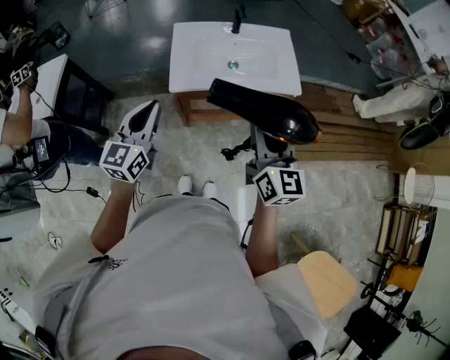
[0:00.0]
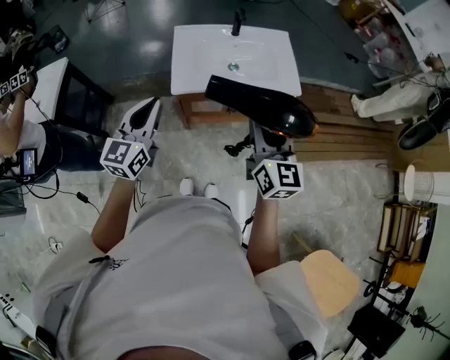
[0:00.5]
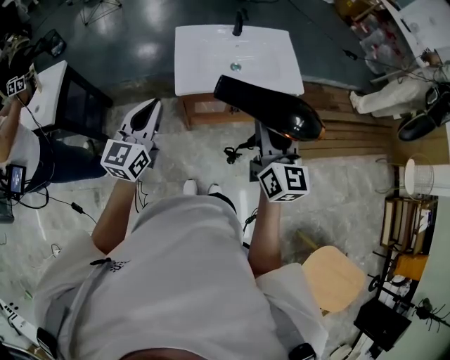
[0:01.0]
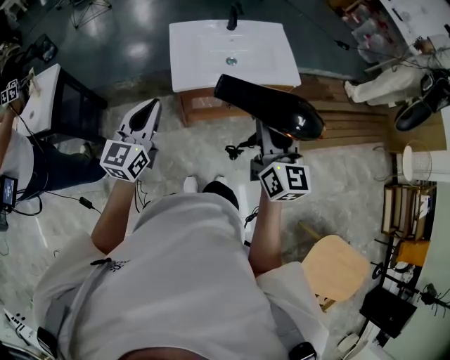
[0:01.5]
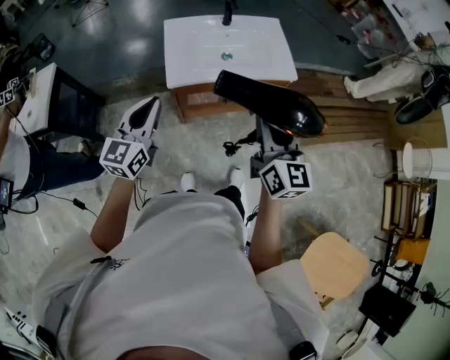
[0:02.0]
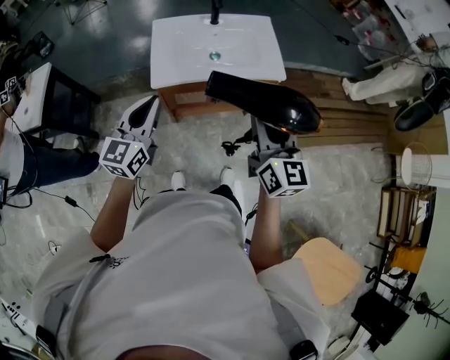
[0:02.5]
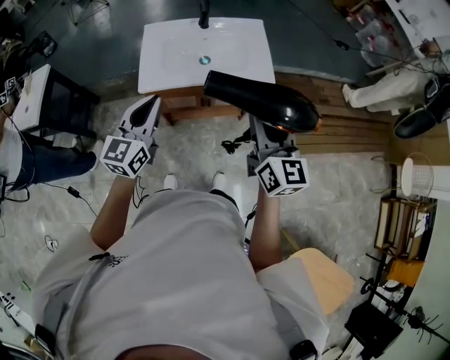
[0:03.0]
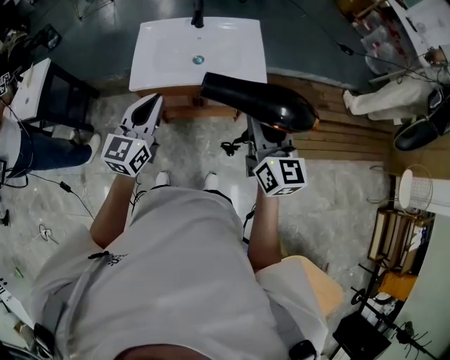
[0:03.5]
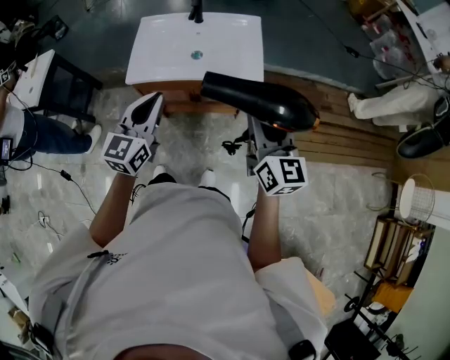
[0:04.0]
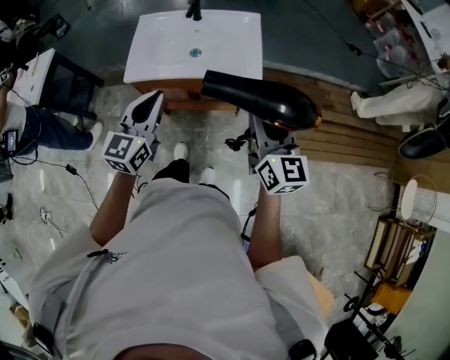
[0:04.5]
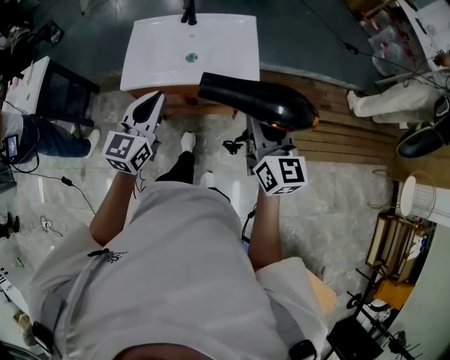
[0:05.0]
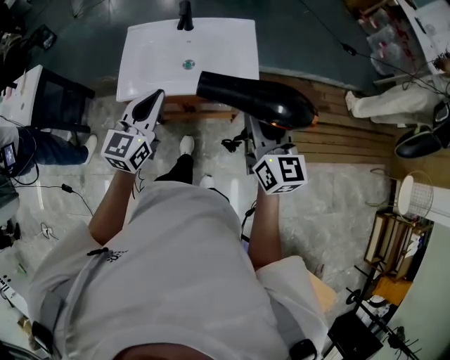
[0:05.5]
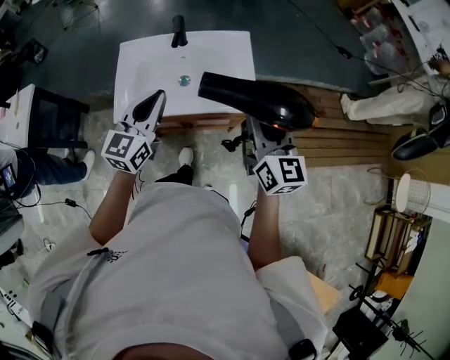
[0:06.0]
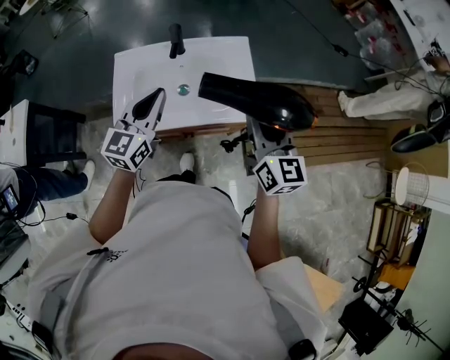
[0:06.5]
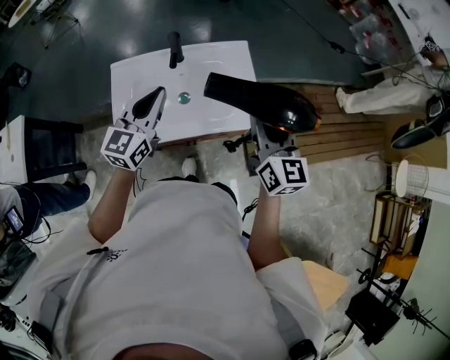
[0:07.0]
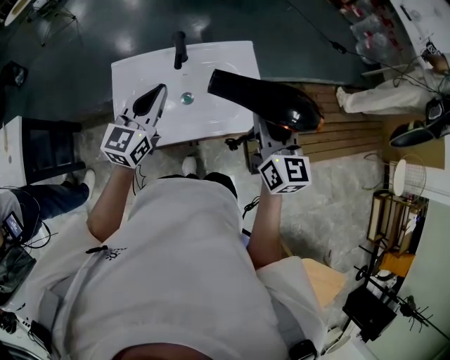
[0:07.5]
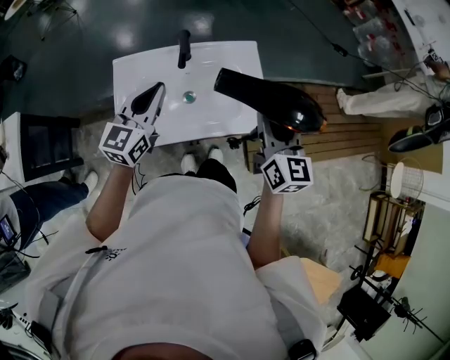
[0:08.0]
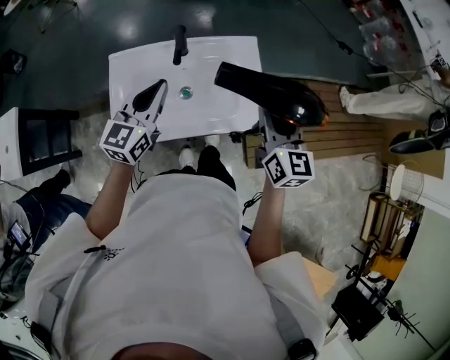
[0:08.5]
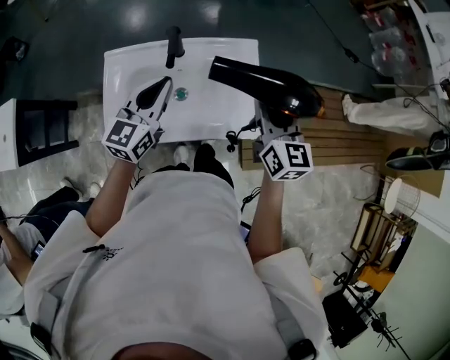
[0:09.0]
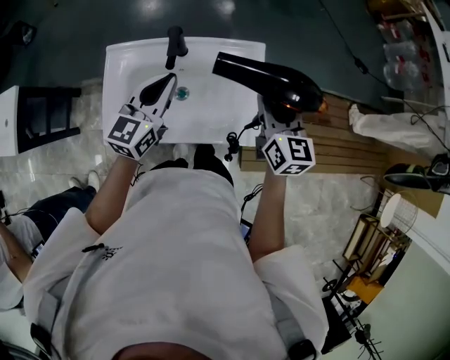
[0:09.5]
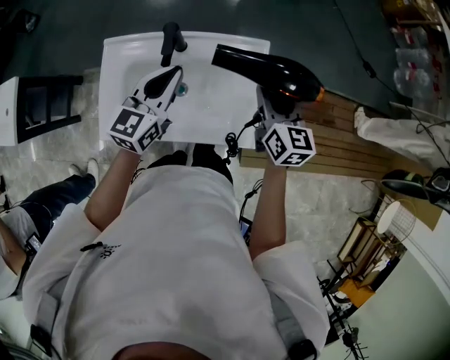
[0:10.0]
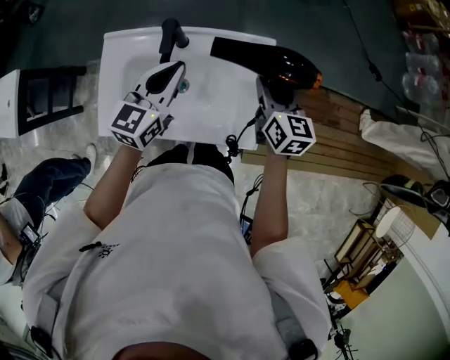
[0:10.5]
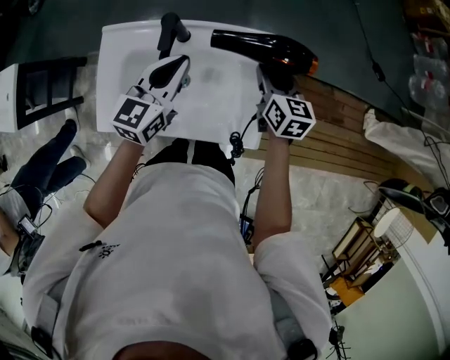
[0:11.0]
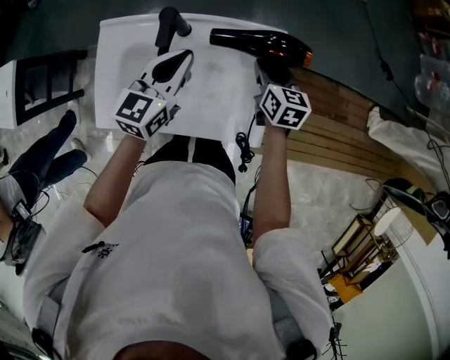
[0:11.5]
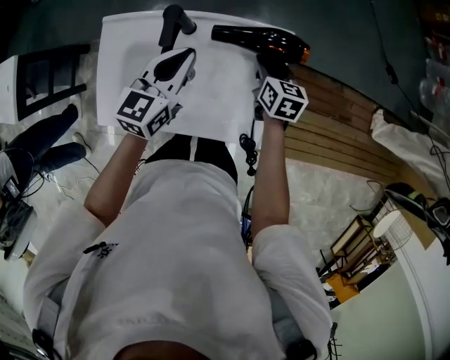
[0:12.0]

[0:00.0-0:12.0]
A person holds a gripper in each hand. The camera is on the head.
0:00.0 to 0:02.0: The grippers make only small movements.
0:02.0 to 0:04.0: The grippers both shift to the right by some 25 cm.
0:04.0 to 0:06.0: Both grippers move forward, some 15 cm.
0:06.0 to 0:08.0: The grippers both shift forward and to the left by some 15 cm.
0:08.0 to 0:10.0: The left gripper heads to the right and forward, covering some 15 cm. The right gripper shifts approximately 20 cm forward and downward.
0:10.0 to 0:12.0: The right gripper travels downward by roughly 20 cm, and rotates about 20 degrees; the left gripper moves downward, roughly 5 cm.

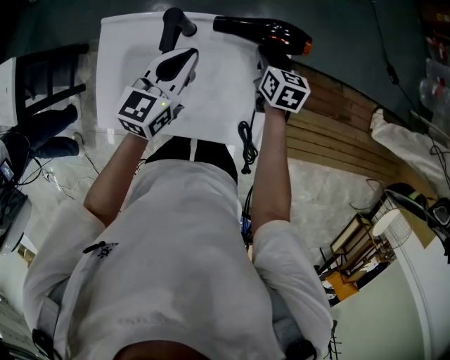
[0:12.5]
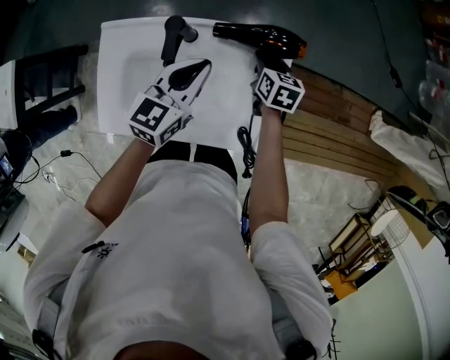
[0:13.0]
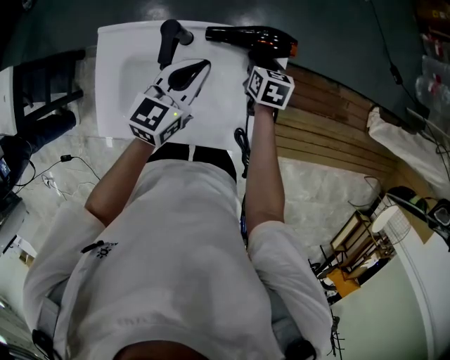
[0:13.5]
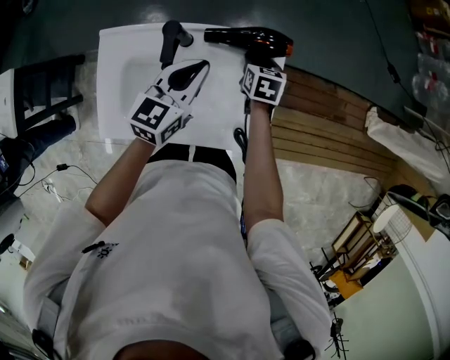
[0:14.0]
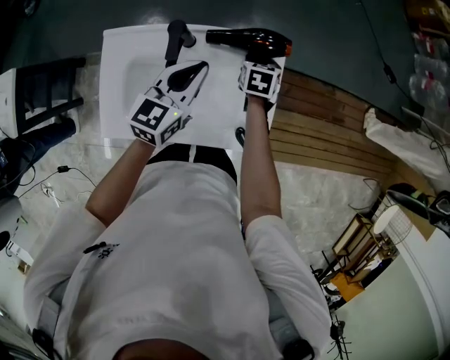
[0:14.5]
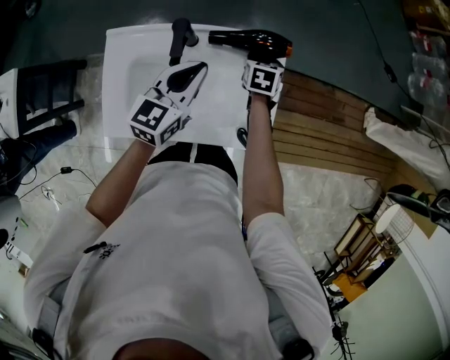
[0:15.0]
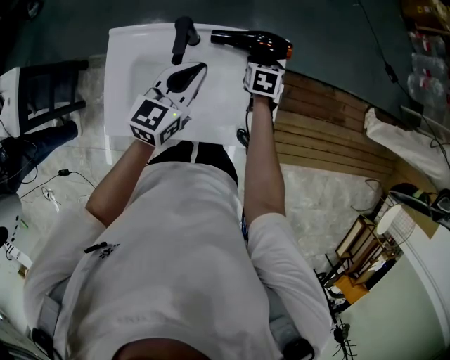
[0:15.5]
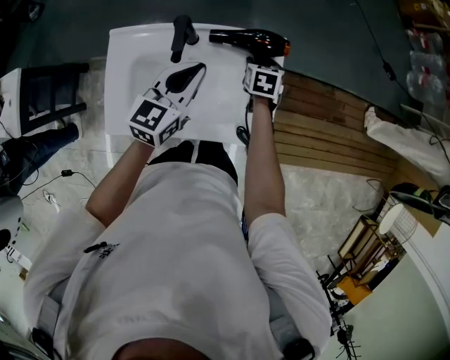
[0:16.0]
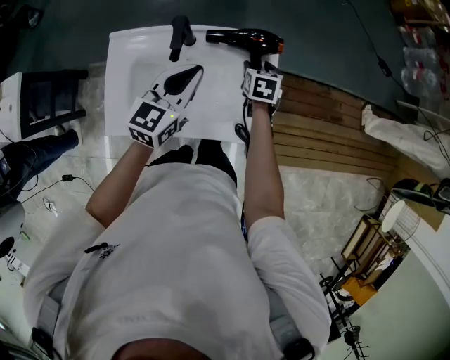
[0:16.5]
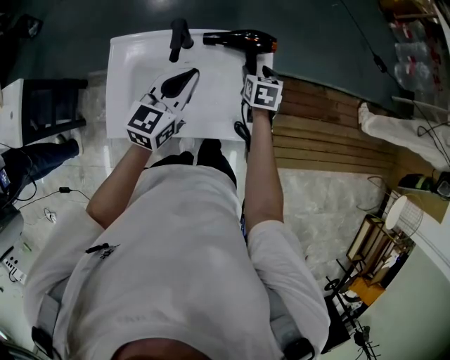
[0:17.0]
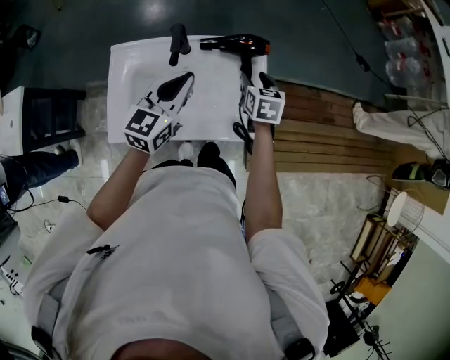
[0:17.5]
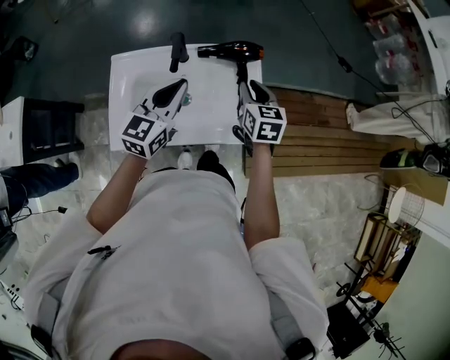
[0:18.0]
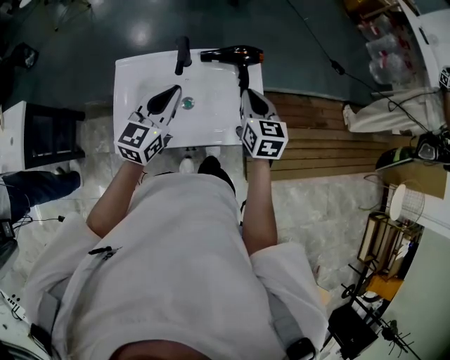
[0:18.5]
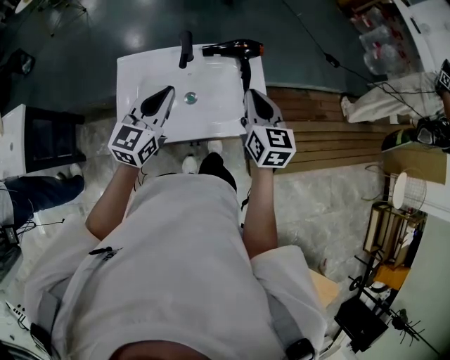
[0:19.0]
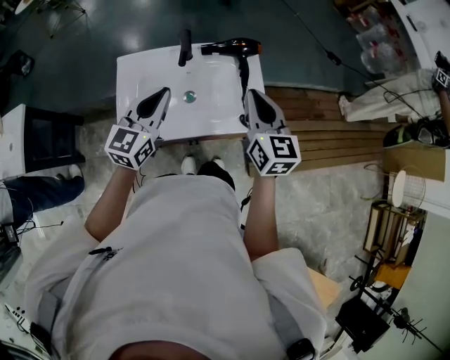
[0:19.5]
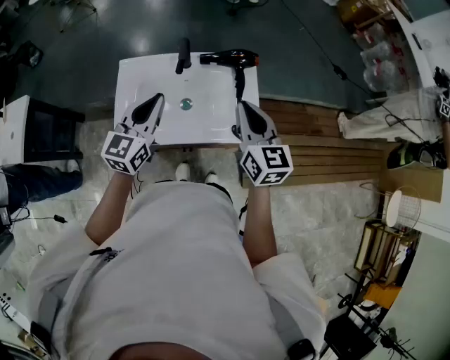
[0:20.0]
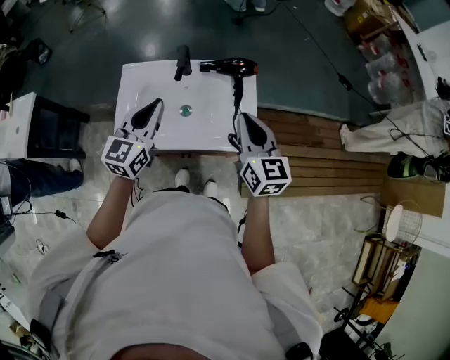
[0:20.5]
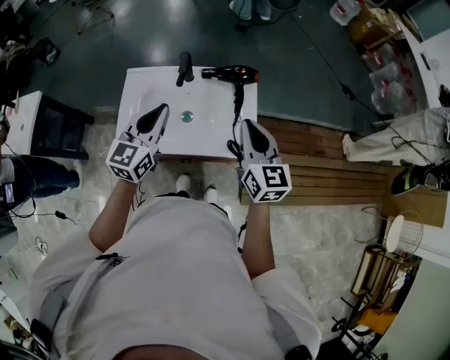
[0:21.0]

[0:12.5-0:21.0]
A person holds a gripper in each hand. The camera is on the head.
0:12.5 to 0:14.5: There are only small adjustments of the grippers.
0:14.5 to 0:16.5: The right gripper shifts by some 5 cm.
0:16.5 to 0:19.0: The right gripper shifts roughly 30 cm upward and backward, points its fingers approximately 30 degrees further upward, and closes up. The left gripper travels backward and upward by roughly 10 cm.
0:19.0 to 0:21.0: The right gripper is displaced upward by roughly 5 cm. The left gripper ends up roughly 5 cm from where it was.

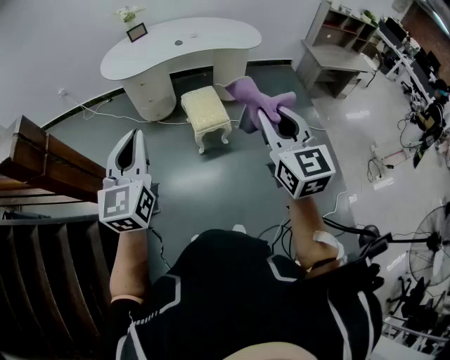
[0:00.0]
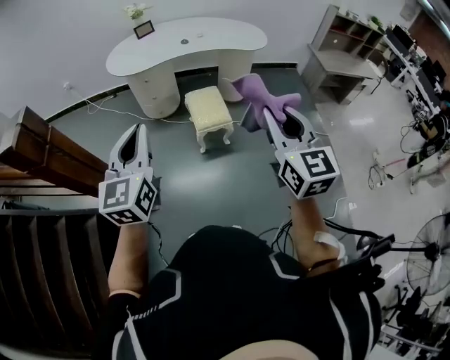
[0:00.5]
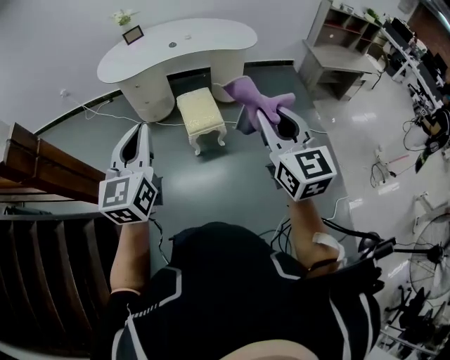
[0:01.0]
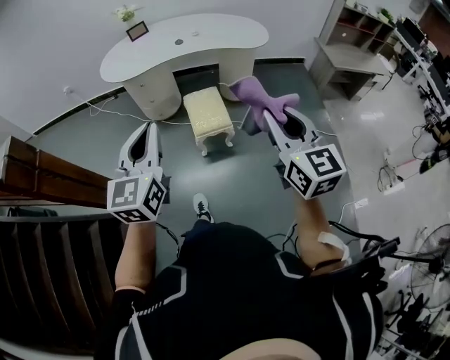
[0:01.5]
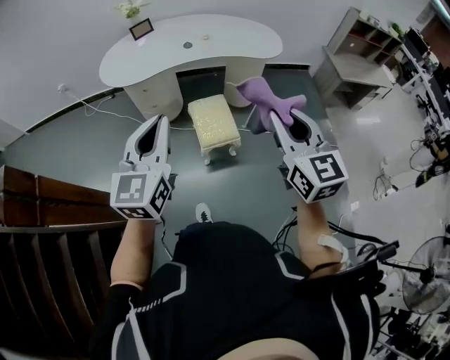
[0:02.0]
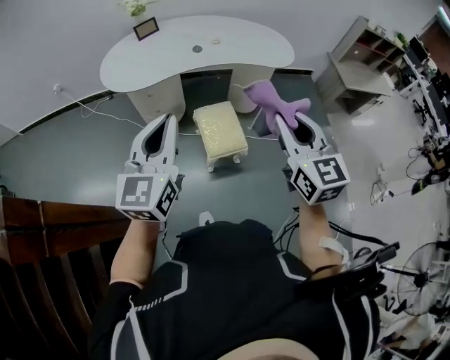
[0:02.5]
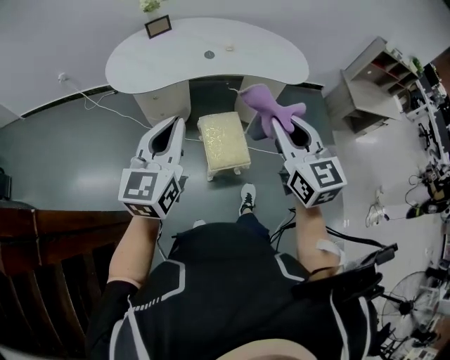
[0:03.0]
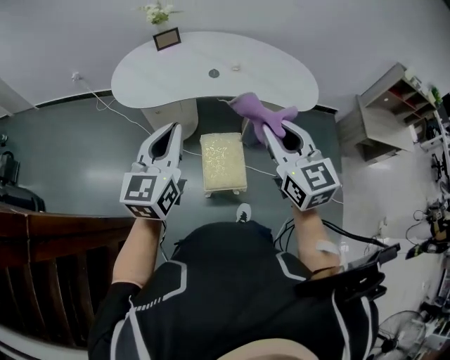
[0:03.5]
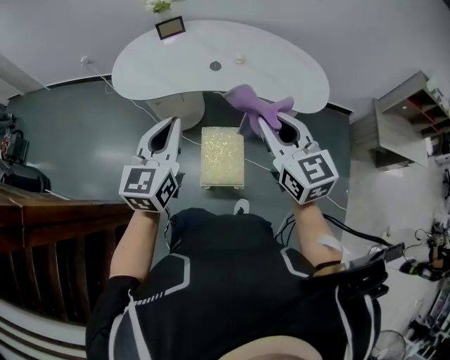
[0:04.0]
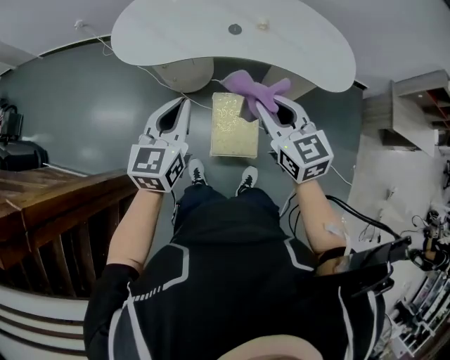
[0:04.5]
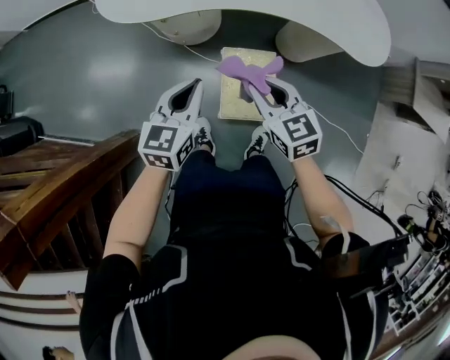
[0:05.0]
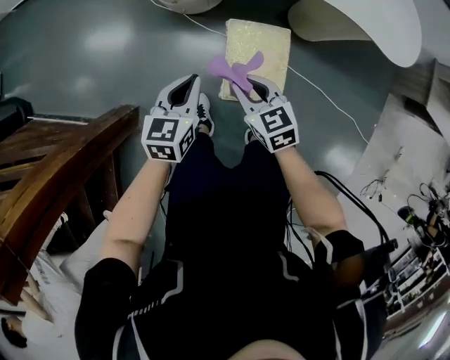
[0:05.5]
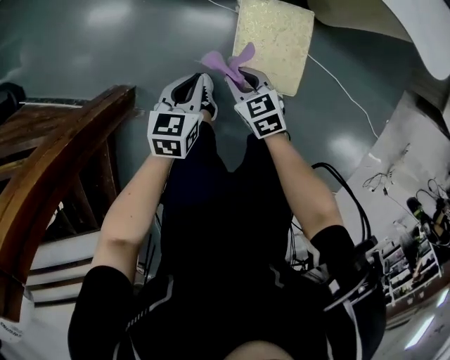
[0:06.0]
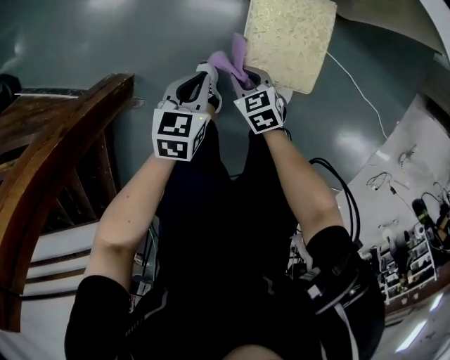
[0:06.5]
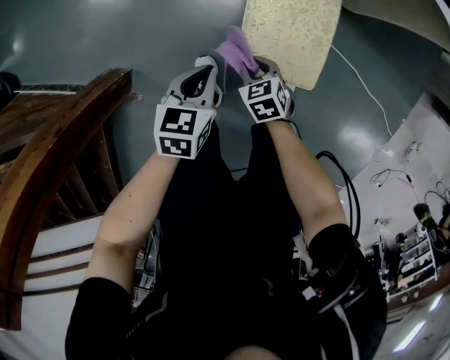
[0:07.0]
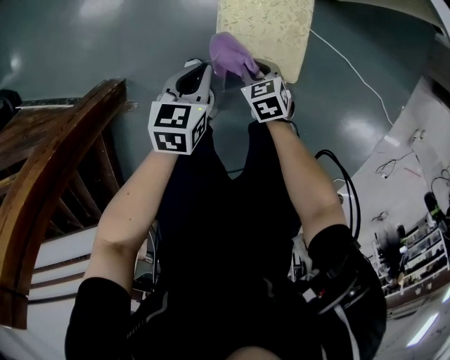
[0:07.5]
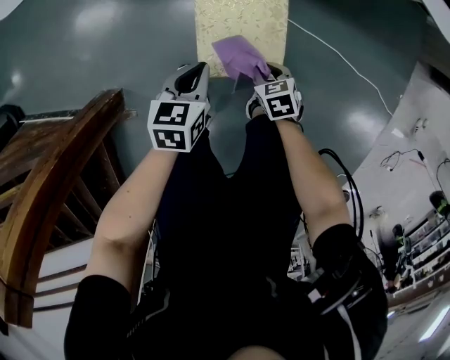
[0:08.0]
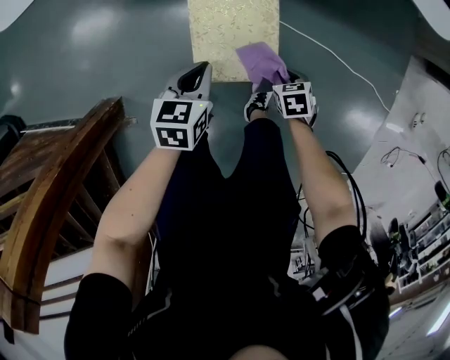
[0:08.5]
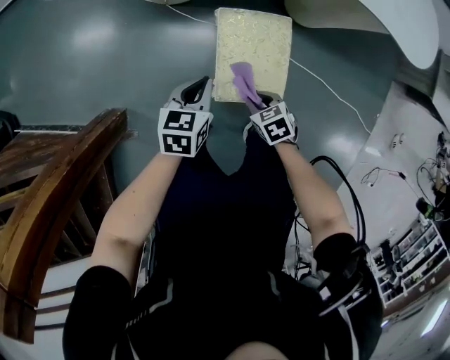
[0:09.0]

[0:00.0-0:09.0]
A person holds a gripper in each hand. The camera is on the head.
0:00.0 to 0:02.0: Both grippers move forward, some 20 cm.
0:02.0 to 0:04.5: The two grippers go some 35 cm forward and downward. The right gripper swivels approximately 30 degrees, while the left gripper turns by roughly 20 degrees.
0:04.5 to 0:07.0: The two grippers go approximately 50 cm downward. The left gripper angles its fingers downward, by about 30 degrees. Meanwhile the right gripper angles its fingers downward, by some 40 degrees.
0:07.0 to 0:09.0: The left gripper moves approximately 10 cm.
